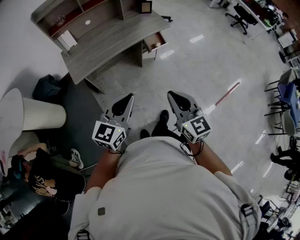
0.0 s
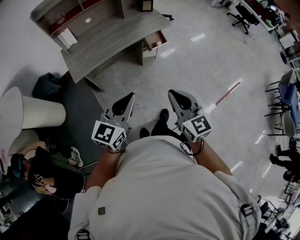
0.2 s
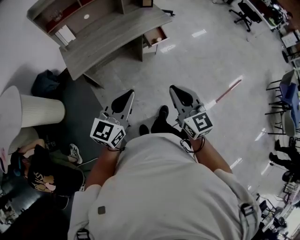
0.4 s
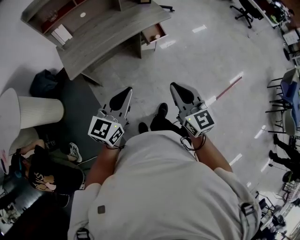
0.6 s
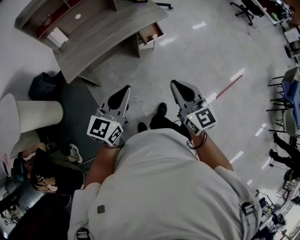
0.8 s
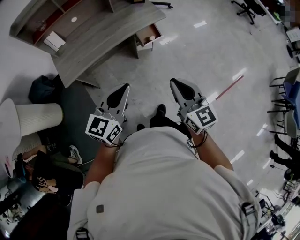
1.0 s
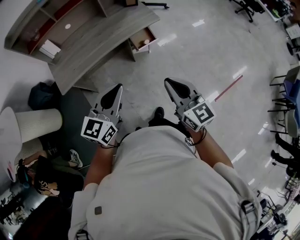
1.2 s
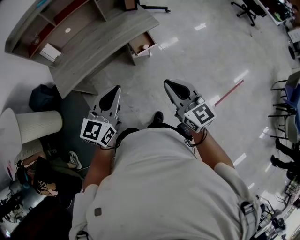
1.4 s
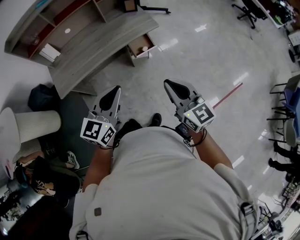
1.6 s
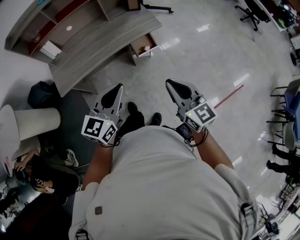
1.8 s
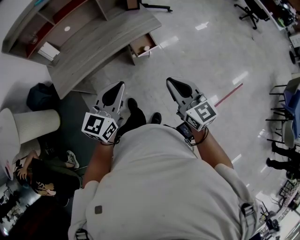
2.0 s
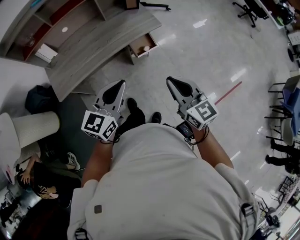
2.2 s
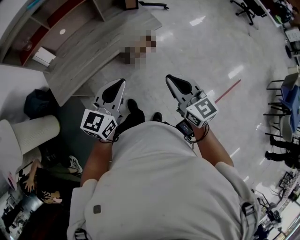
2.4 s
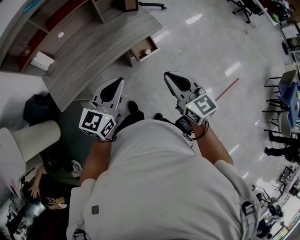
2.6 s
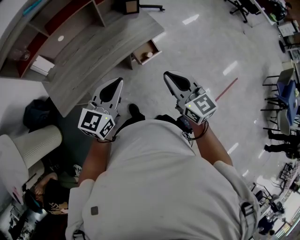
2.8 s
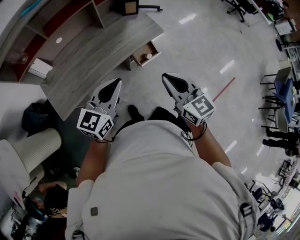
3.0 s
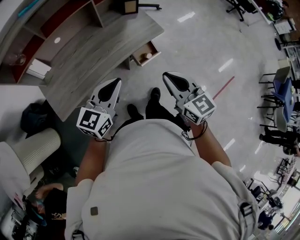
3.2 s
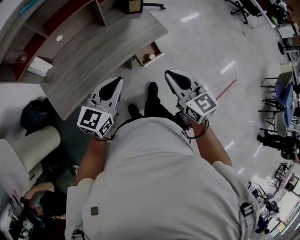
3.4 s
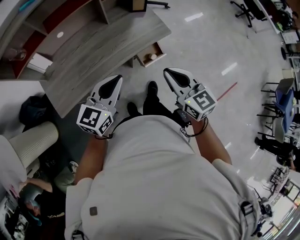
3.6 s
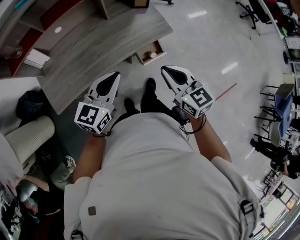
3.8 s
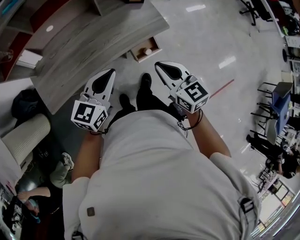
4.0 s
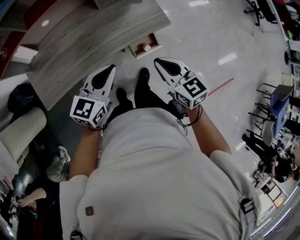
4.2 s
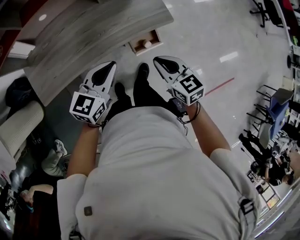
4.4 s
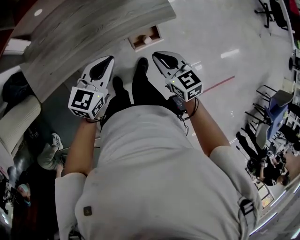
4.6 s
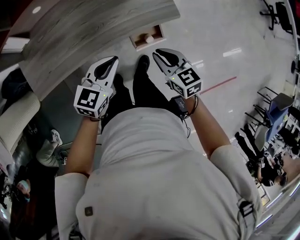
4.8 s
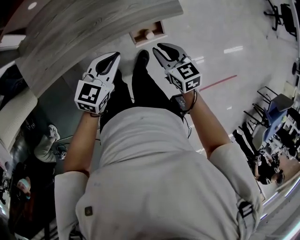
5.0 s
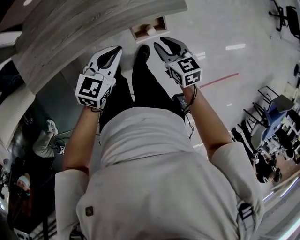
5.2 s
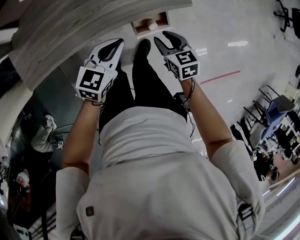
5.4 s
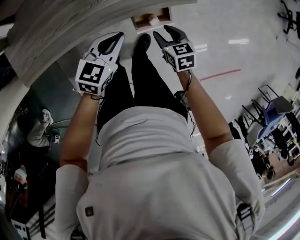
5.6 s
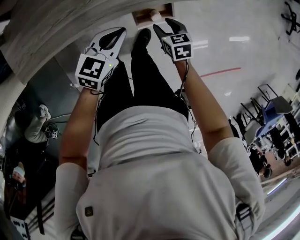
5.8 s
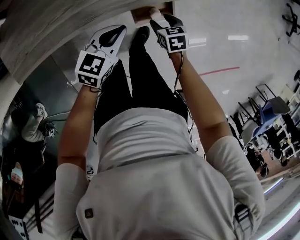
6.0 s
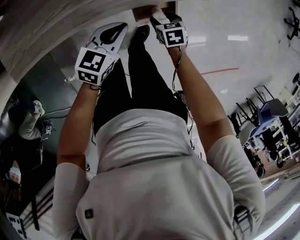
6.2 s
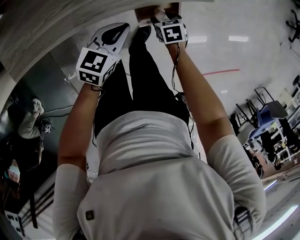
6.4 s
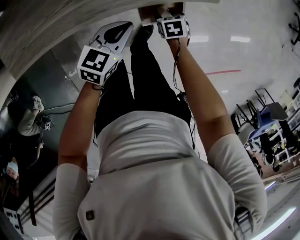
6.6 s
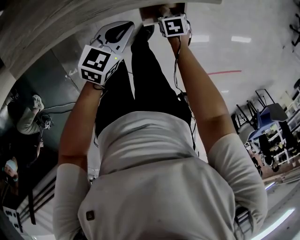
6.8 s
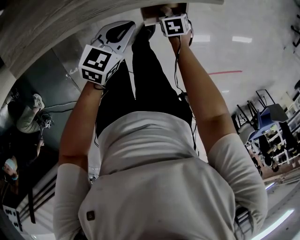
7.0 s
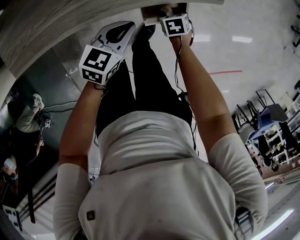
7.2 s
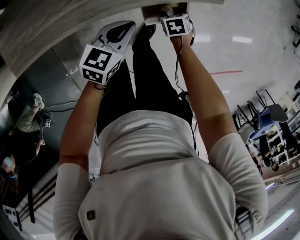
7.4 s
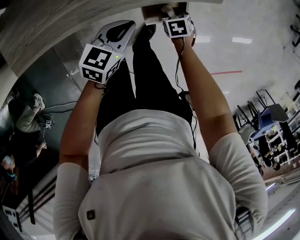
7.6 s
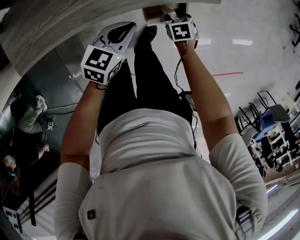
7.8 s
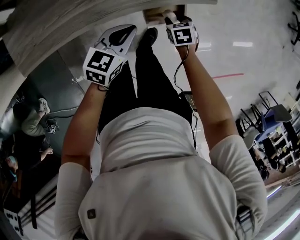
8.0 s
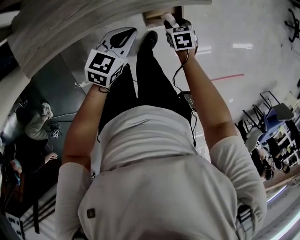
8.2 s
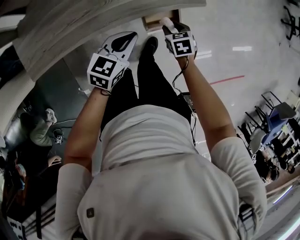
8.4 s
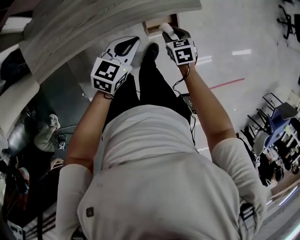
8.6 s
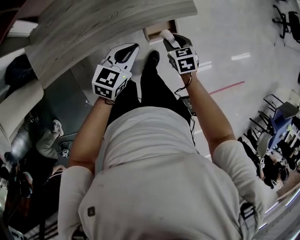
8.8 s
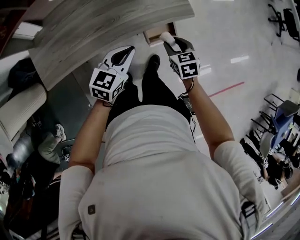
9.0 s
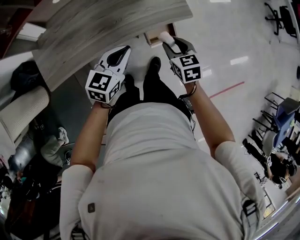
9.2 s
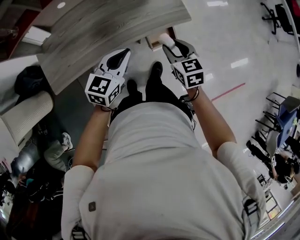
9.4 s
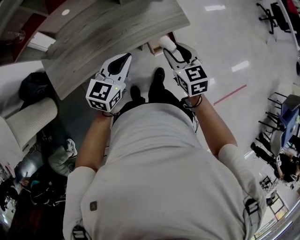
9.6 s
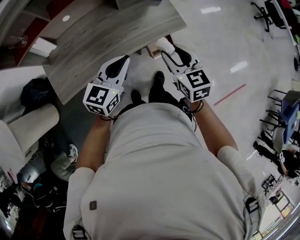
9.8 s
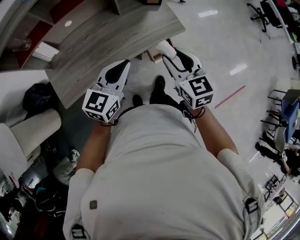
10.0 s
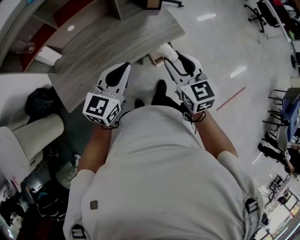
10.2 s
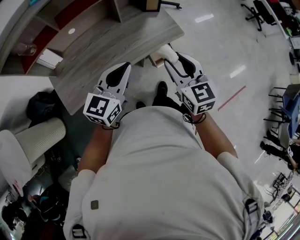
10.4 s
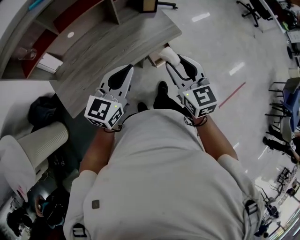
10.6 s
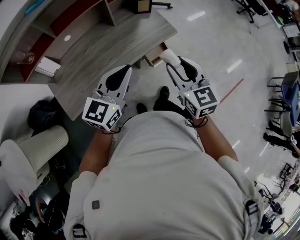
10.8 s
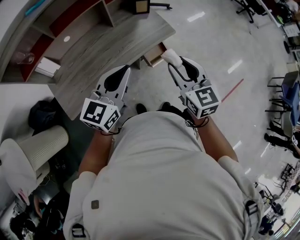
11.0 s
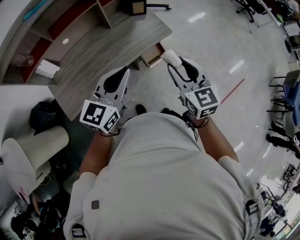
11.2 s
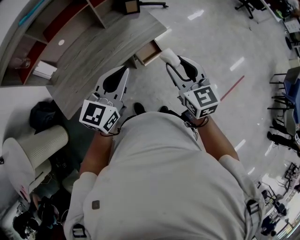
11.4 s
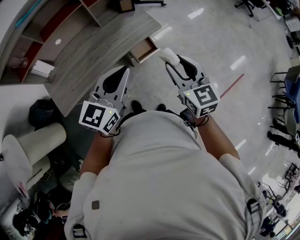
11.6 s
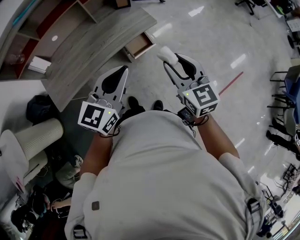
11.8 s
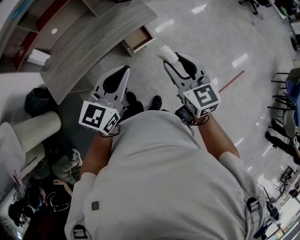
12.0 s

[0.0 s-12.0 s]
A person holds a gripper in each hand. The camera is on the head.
0.0 to 1.6 s: Both grippers move forward and to the right, some 25 cm.
1.6 to 3.0 s: Both grippers travel together forward and to the left, roughly 20 cm.
3.0 to 4.4 s: The grippers both shift forward and downward by approximately 20 cm. The right gripper turns by roughly 20 degrees.
4.4 to 6.0 s: Both grippers travel together downward, roughly 30 cm. The right gripper swivels some 30 degrees, and opens up.
6.0 to 7.6 s: The right gripper is displaced downward by some 5 cm.
7.6 to 9.0 s: The two grippers go some 25 cm upward. The right gripper swivels roughly 20 degrees.
9.0 to 10.4 s: Both grippers travel together upward, approximately 25 cm. The right gripper angles its fingers upward, by about 30 degrees.
10.4 to 12.0 s: The two grippers go approximately 25 cm to the right and backward.

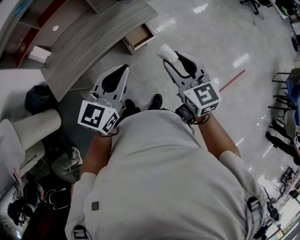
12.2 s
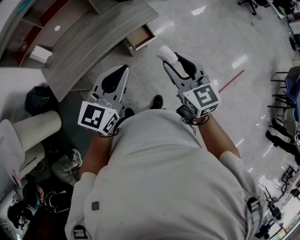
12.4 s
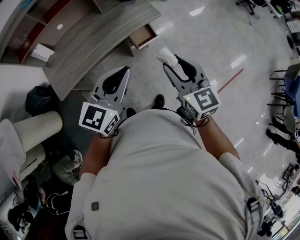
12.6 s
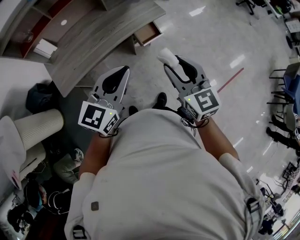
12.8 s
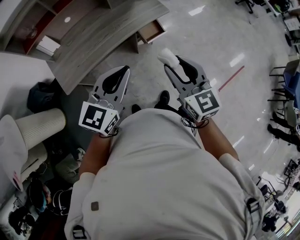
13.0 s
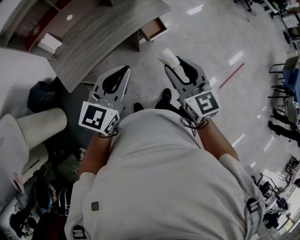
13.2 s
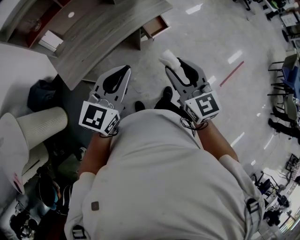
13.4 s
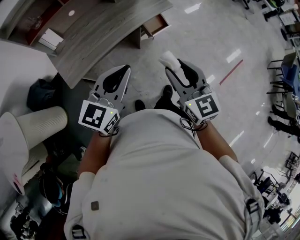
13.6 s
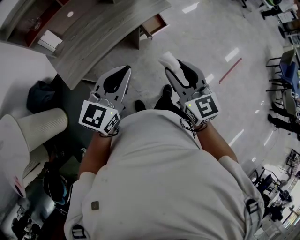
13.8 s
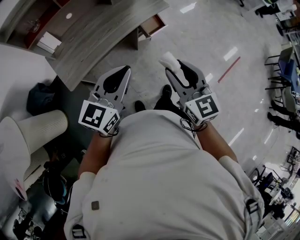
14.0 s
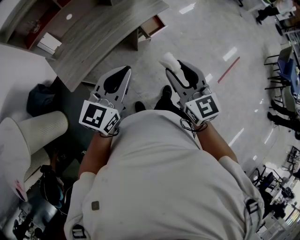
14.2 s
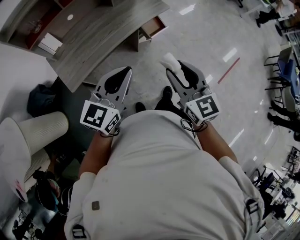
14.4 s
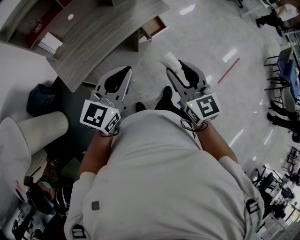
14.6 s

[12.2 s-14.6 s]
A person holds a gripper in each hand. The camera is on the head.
12.2 to 13.4 s: Both grippers travel together to the left and backward, roughly 25 cm.
13.4 to 14.6 s: The grippers move only a little.

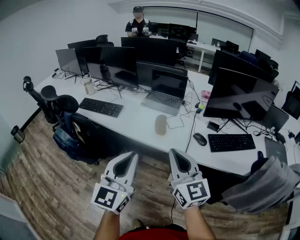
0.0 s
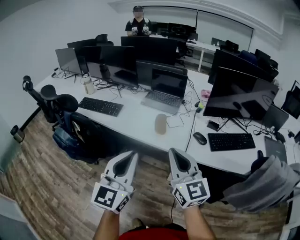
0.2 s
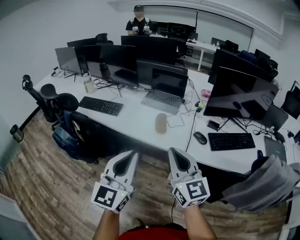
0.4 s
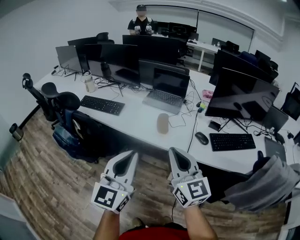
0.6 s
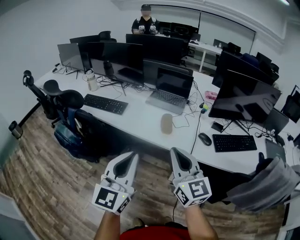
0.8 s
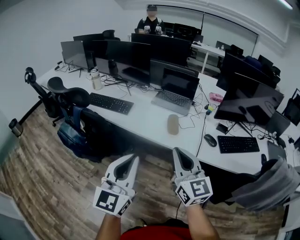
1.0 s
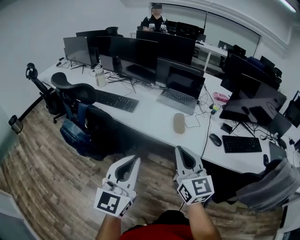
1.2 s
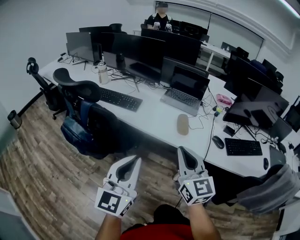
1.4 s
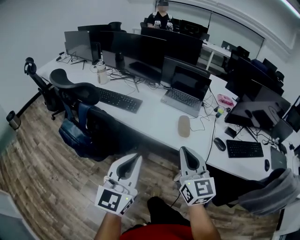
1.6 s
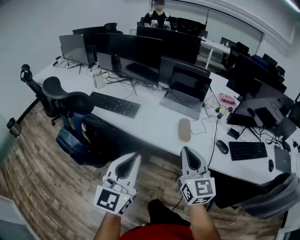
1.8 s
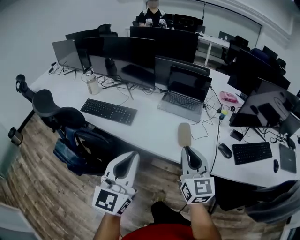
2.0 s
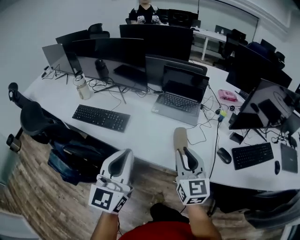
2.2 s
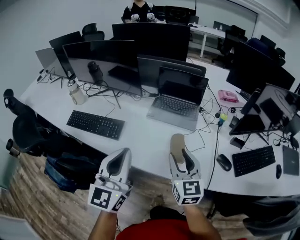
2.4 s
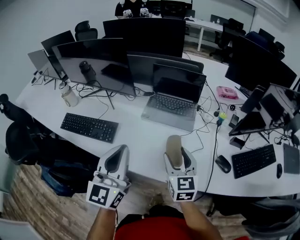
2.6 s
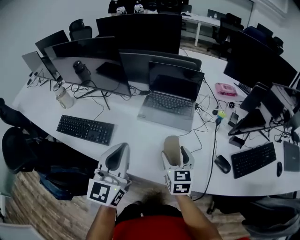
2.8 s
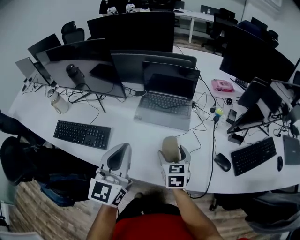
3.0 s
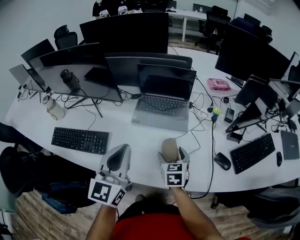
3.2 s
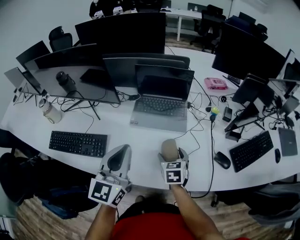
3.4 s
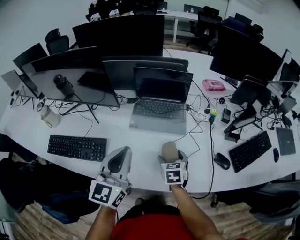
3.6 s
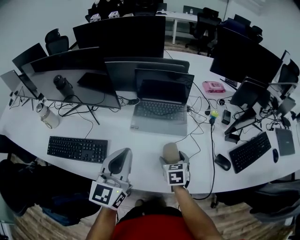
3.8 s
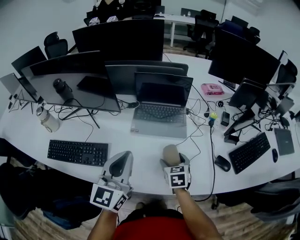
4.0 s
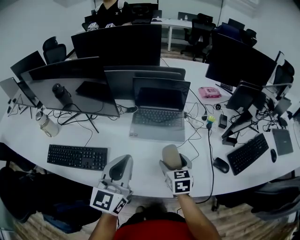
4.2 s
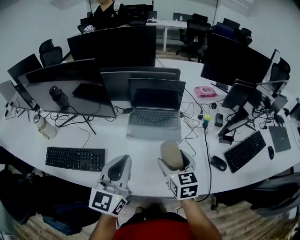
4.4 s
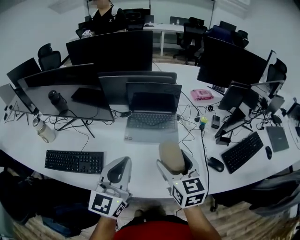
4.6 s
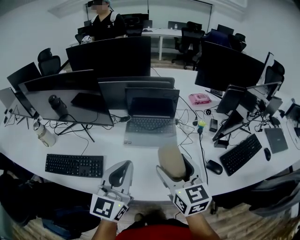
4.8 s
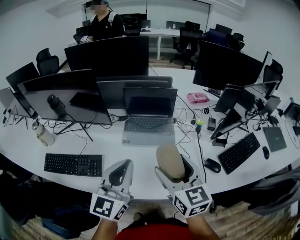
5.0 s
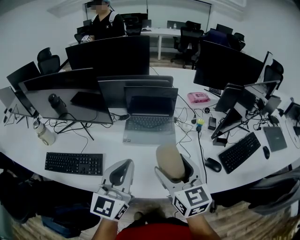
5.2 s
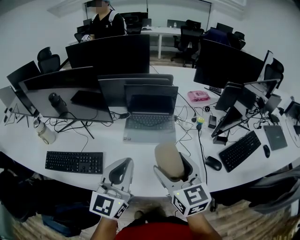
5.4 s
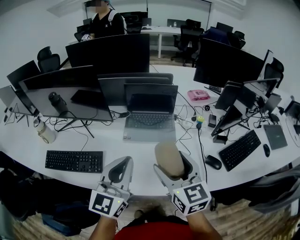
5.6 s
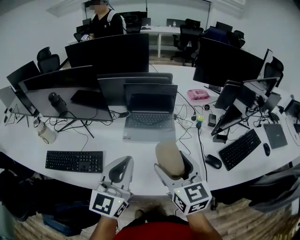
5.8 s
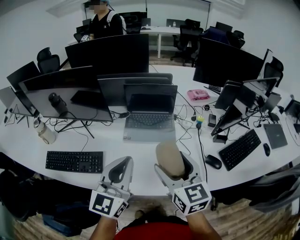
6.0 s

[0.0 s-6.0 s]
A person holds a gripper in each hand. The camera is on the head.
0.0 to 1.6 s: The right gripper shifts roughly 15 cm to the left and forward. Meanwhile the left gripper travels to the left by approximately 15 cm.
1.6 to 3.0 s: The right gripper heads forward and downward, covering approximately 40 cm, angles its fingers downward, by roughly 30 degrees, and opens up. Meanwhile the left gripper travels forward by roughly 35 cm.
3.0 to 4.4 s: The right gripper is displaced upward by roughly 10 cm.
4.4 to 6.0 s: The right gripper travels upward and backward by approximately 15 cm; the left gripper moves approximately 5 cm.

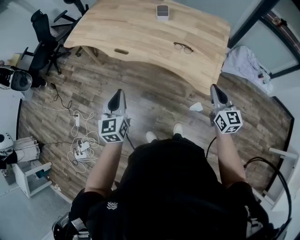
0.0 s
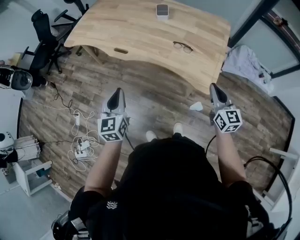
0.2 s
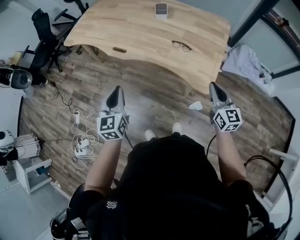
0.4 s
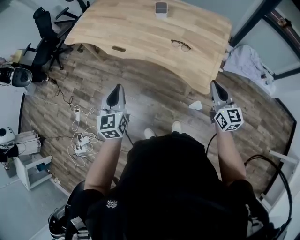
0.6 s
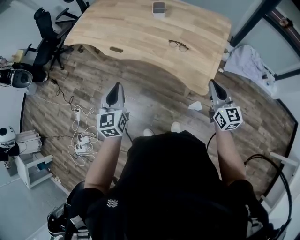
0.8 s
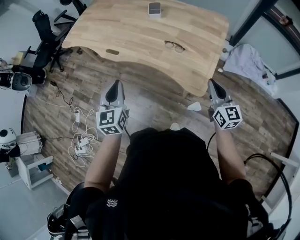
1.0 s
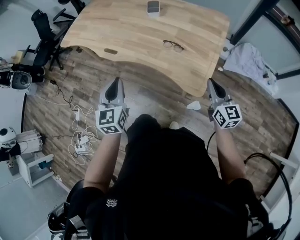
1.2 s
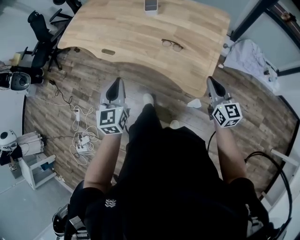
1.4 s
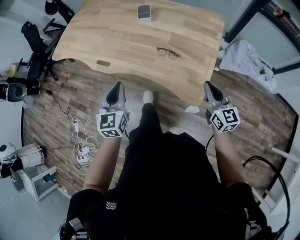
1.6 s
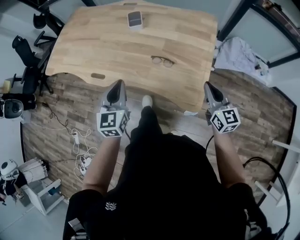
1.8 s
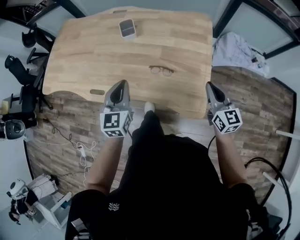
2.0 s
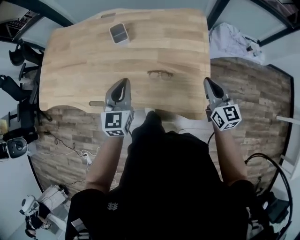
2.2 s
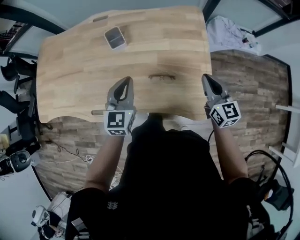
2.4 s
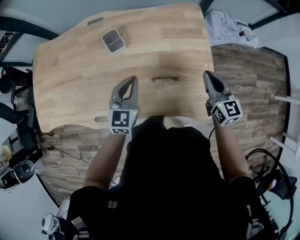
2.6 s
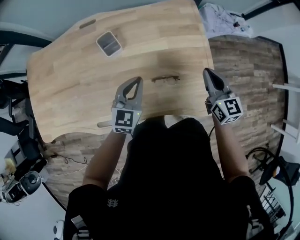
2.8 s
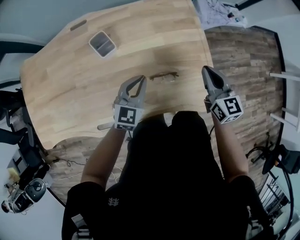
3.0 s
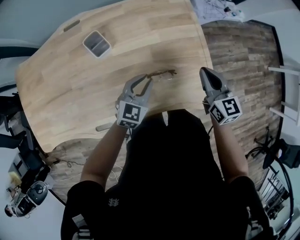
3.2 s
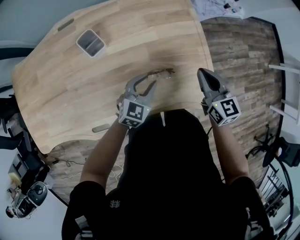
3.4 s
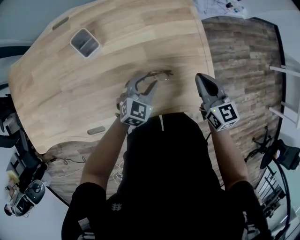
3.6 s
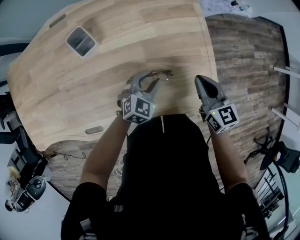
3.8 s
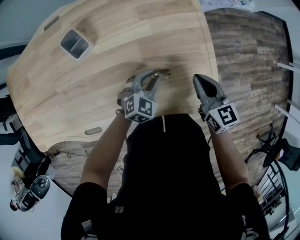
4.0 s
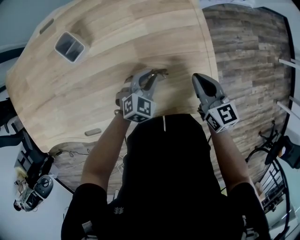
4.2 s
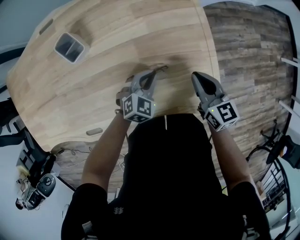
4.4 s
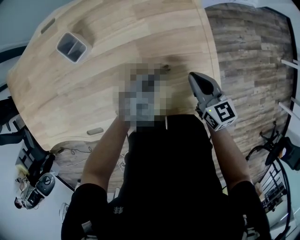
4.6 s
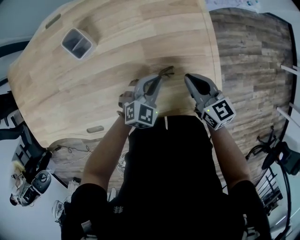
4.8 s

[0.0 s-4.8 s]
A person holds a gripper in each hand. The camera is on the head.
0.0 to 1.6 s: Both grippers travel together to the right and forward, some 15 cm.
1.6 to 3.2 s: The left gripper changes place by approximately 35 cm, and swivels roughly 60 degrees. Meanwhile the right gripper changes place by approximately 25 cm, and rotates roughly 30 degrees.
3.2 to 4.8 s: The right gripper heads downward, covering about 15 cm. Meanwhile the left gripper goes roughly 15 cm downward and to the right, and swivels about 20 degrees.
